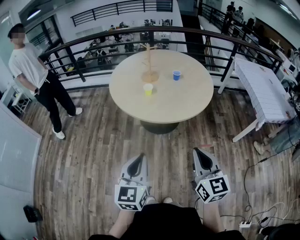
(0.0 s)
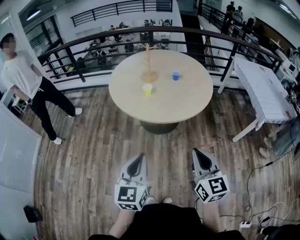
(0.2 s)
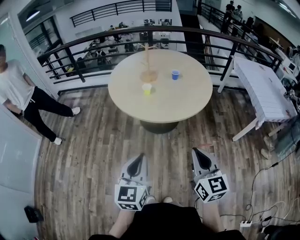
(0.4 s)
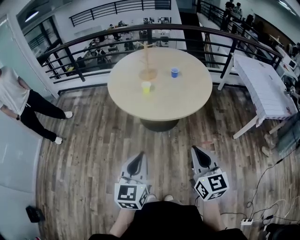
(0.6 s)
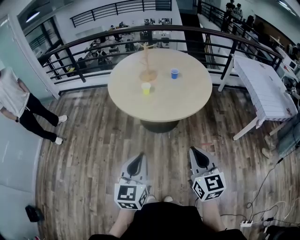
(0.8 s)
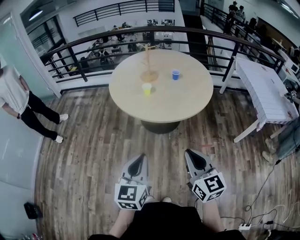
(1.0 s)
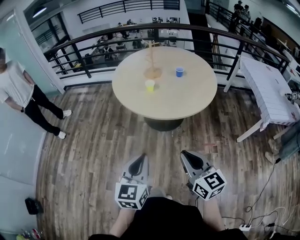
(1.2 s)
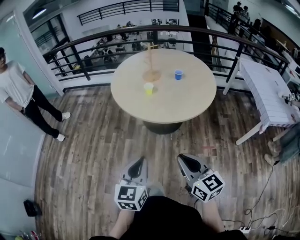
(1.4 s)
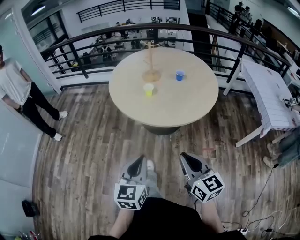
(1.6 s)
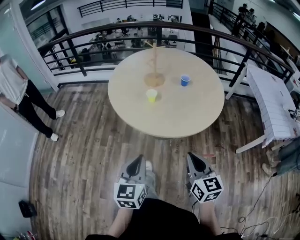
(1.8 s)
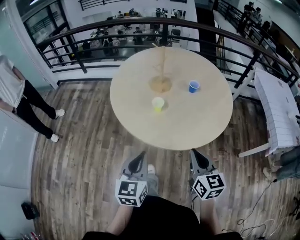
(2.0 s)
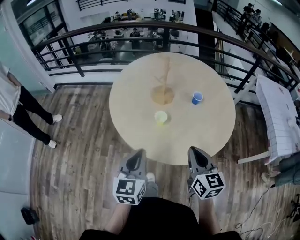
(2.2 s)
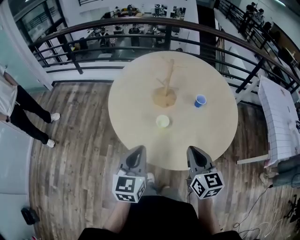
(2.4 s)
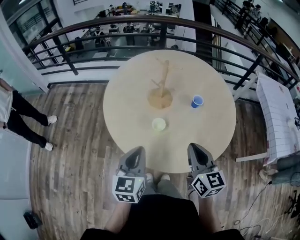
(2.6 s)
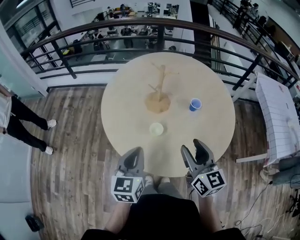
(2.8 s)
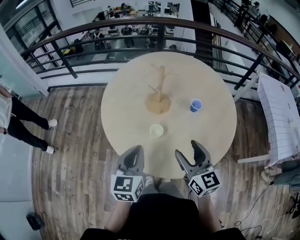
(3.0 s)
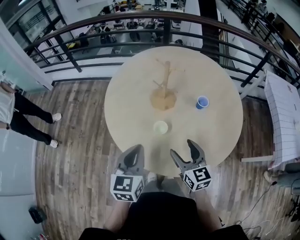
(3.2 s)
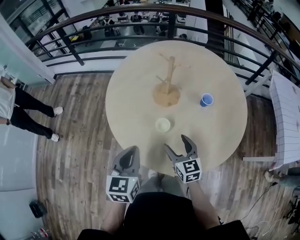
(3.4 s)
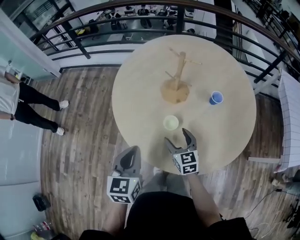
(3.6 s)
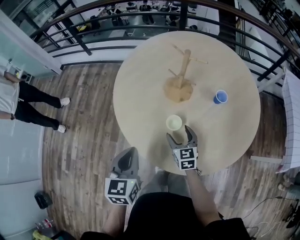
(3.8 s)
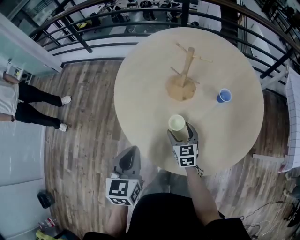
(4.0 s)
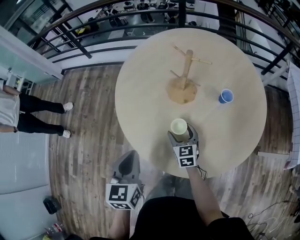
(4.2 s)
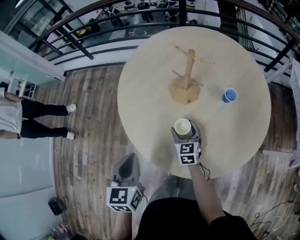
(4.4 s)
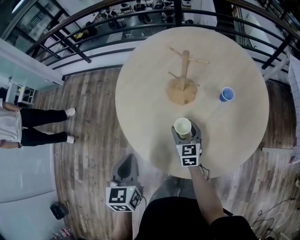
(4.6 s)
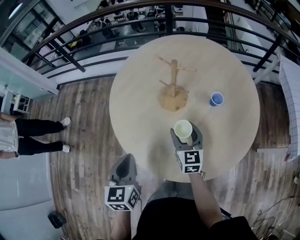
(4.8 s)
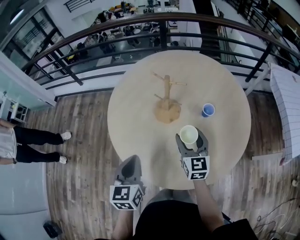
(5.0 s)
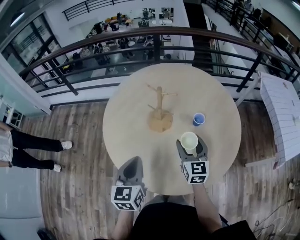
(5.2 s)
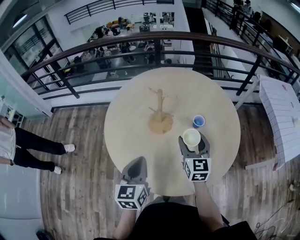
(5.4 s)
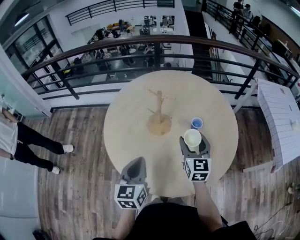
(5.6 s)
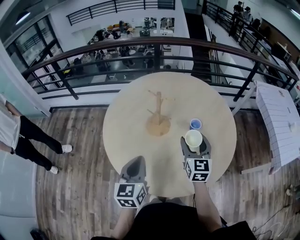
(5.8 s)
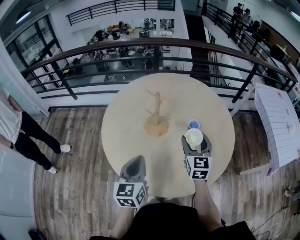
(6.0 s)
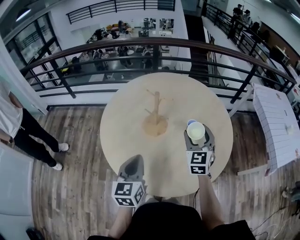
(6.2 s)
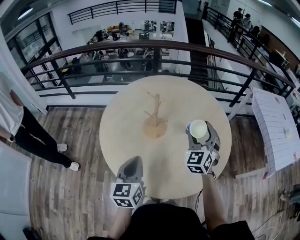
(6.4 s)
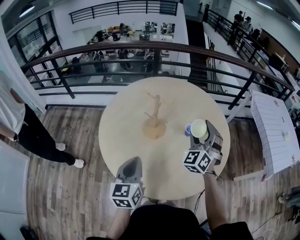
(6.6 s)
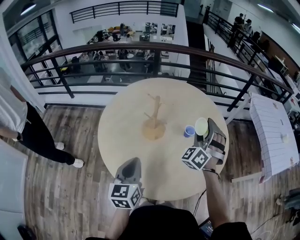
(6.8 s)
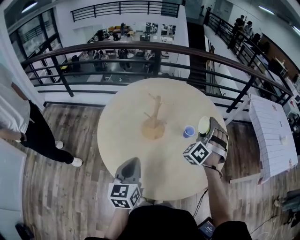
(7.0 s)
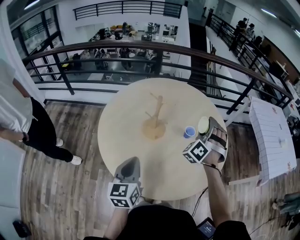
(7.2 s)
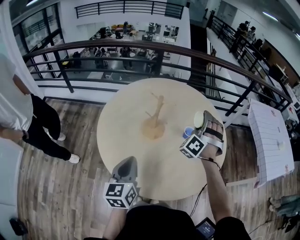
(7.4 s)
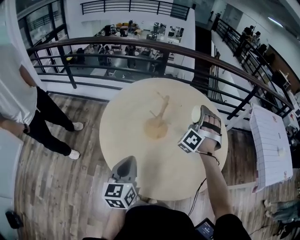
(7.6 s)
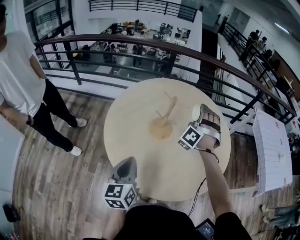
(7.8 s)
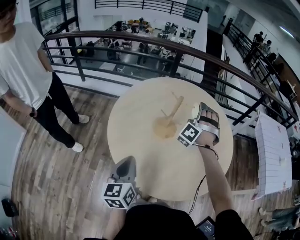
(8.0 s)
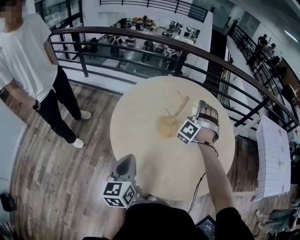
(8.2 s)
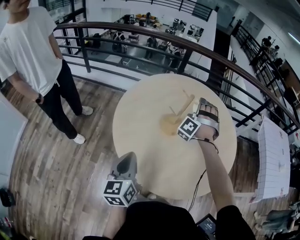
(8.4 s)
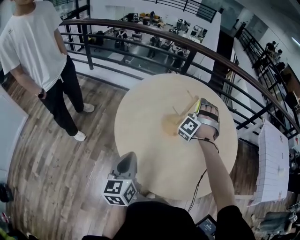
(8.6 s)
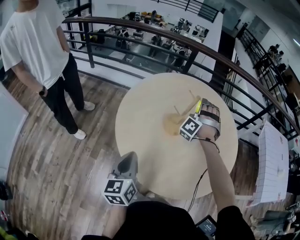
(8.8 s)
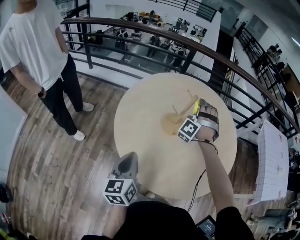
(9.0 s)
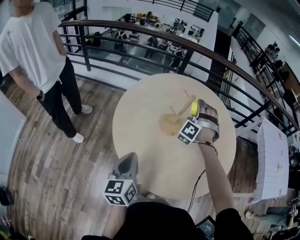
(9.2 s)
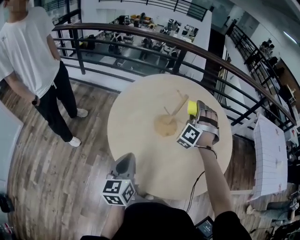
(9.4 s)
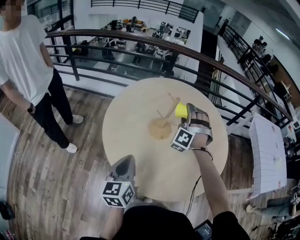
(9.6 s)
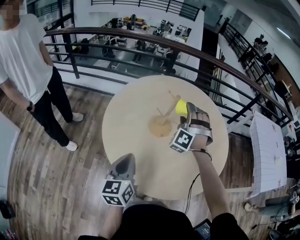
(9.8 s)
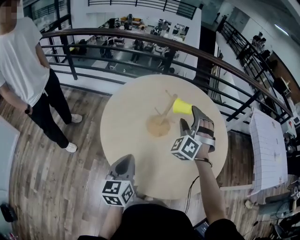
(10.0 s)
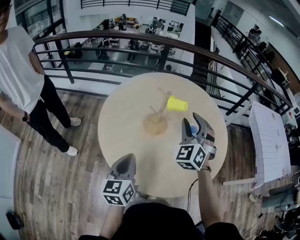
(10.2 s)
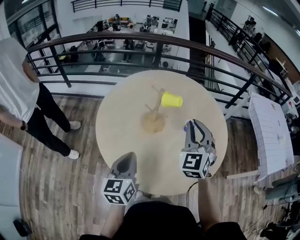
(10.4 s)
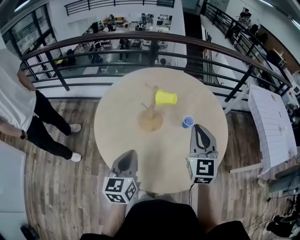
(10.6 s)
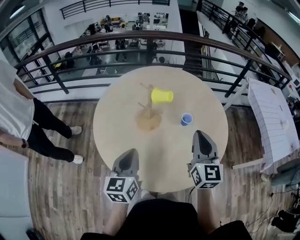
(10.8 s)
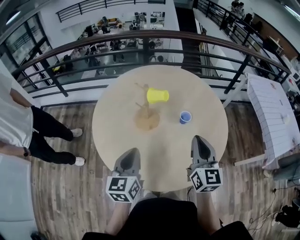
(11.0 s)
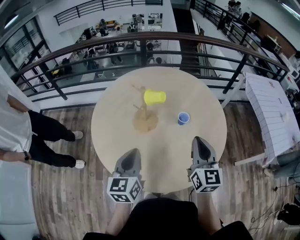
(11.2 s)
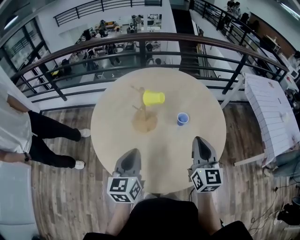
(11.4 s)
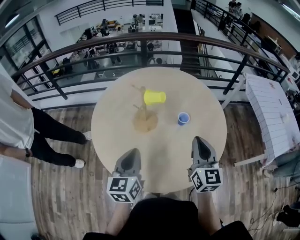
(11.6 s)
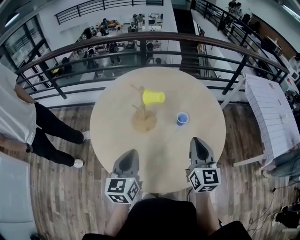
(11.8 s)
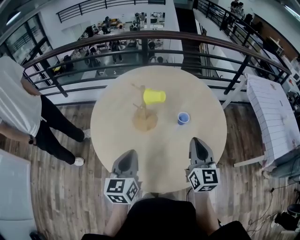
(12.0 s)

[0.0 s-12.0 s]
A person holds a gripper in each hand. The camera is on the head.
0.0 to 1.6 s: The left gripper shifts by approximately 5 cm. The right gripper is displaced downward and forward by approximately 10 cm.
1.6 to 3.0 s: The pair of grippers is taken forward, some 40 cm. The right gripper opens.
3.0 to 4.4 s: The right gripper shifts some 30 cm downward and forward, and changes its angle by roughly 20 degrees, while the left gripper shifts some 10 cm to the left and downward.
4.4 to 6.0 s: The right gripper moves upward and to the right, some 30 cm, and rotates approximately 20 degrees, while the left gripper moves to the right, upward and forward, roughly 15 cm.
6.0 to 7.6 s: The right gripper is displaced forward and upward by about 15 cm, and twists about 80 degrees counterclockwise, seen from behind.
7.6 to 9.0 s: The left gripper heads to the left, covering some 5 cm. The right gripper travels to the left and downward by roughly 15 cm.
9.0 to 10.4 s: The right gripper is displaced backward, to the right and upward by approximately 20 cm, twists about 60 degrees clockwise, seen from behind, and closes its fingers, while the left gripper heads to the right, covering roughly 10 cm.
10.4 to 12.0 s: The right gripper travels to the right, downward and backward by about 15 cm, and rolls clockwise, seen from behind, by roughly 40 degrees, while the left gripper shifts about 5 cm to the right.

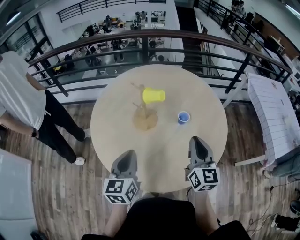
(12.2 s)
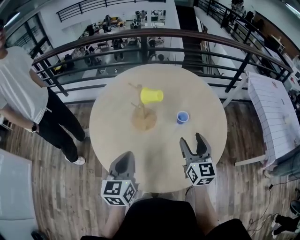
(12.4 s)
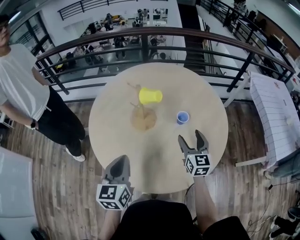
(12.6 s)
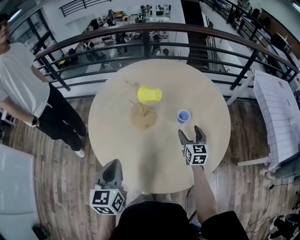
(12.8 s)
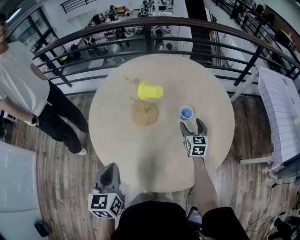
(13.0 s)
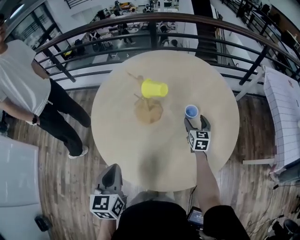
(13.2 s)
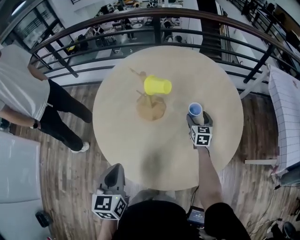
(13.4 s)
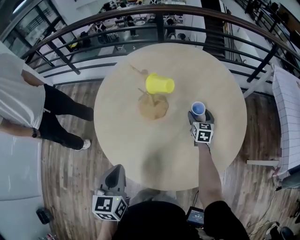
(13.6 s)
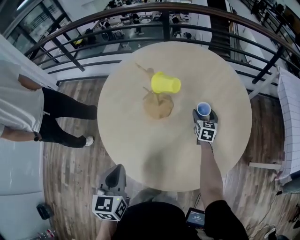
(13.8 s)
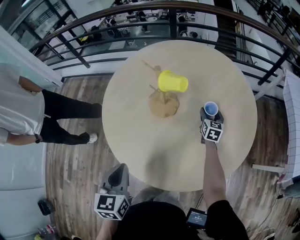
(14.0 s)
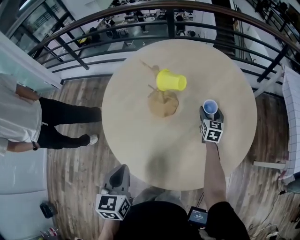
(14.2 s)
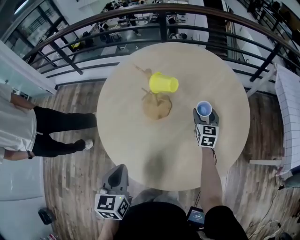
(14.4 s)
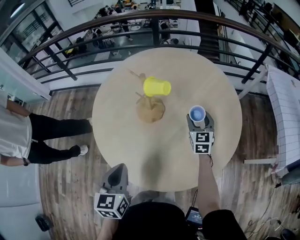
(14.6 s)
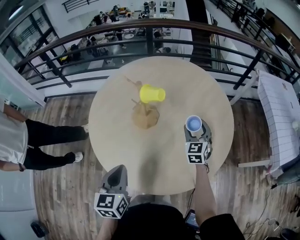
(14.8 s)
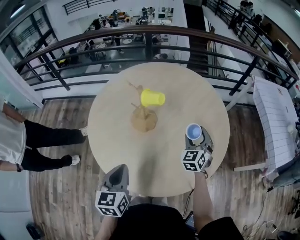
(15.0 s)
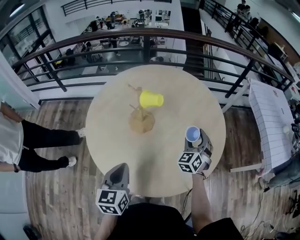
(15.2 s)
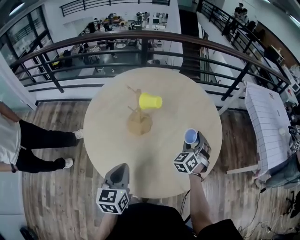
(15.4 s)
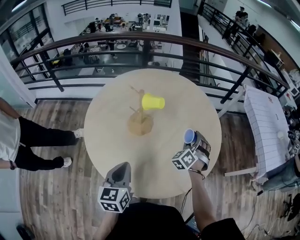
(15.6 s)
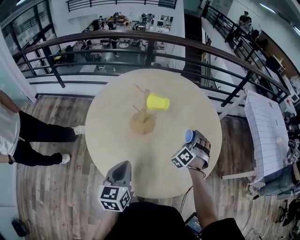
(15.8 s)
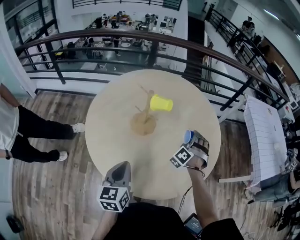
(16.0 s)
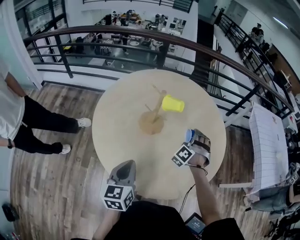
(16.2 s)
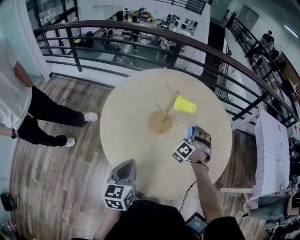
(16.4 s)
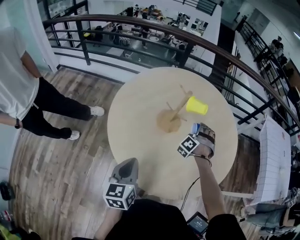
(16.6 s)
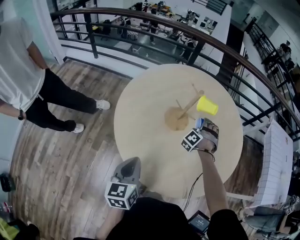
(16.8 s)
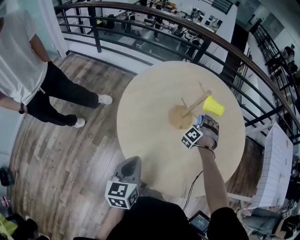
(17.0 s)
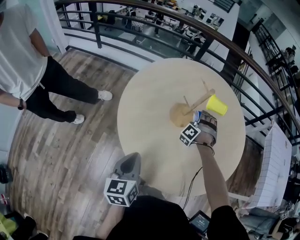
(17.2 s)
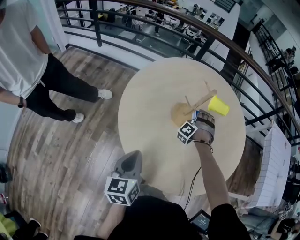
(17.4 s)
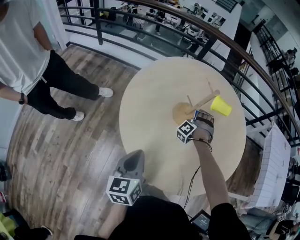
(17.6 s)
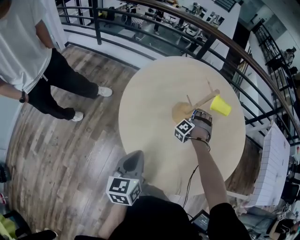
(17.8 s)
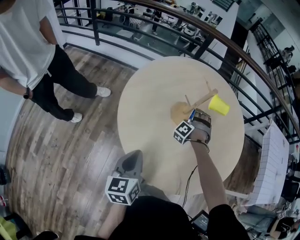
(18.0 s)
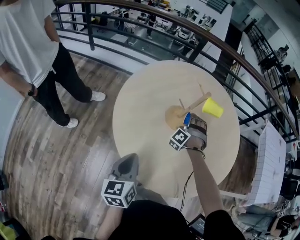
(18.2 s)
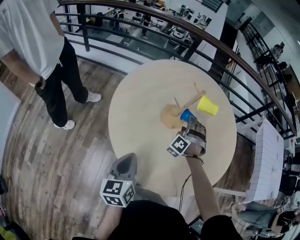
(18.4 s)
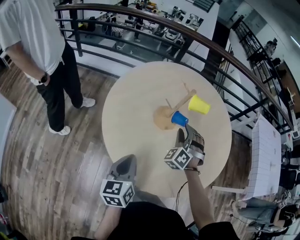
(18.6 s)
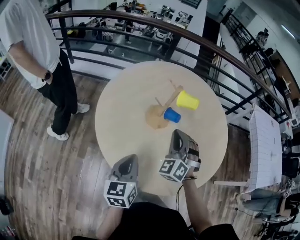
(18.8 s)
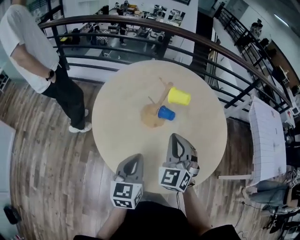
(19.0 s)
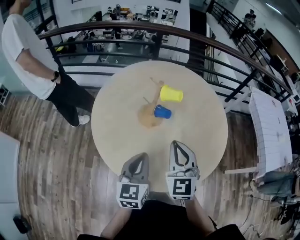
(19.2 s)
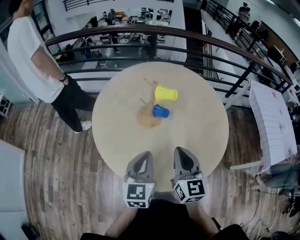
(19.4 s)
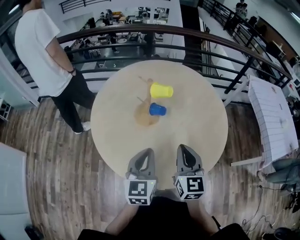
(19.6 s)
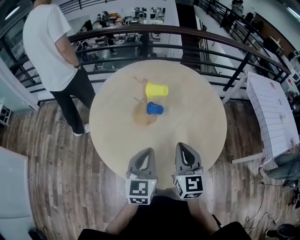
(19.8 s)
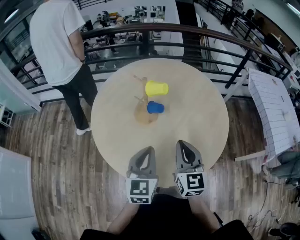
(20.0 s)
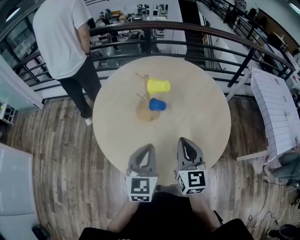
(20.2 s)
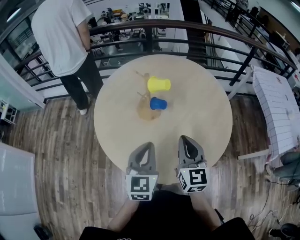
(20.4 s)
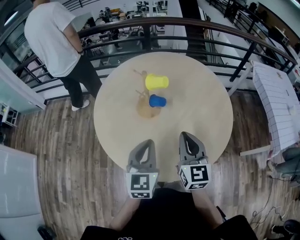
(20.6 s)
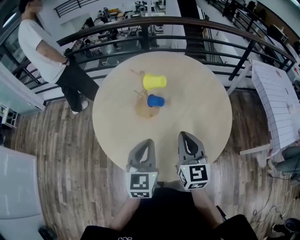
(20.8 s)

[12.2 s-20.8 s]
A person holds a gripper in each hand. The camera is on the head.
12.2 to 13.6 s: The left gripper shifts by about 5 cm. Meanwhile the right gripper travels downward and forward by some 35 cm, swivels about 30 degrees, and opens up.
13.6 to 15.0 s: The right gripper heads upward and backward, covering roughly 15 cm, and changes its angle by approximately 40 degrees.
15.0 to 16.6 s: The left gripper goes roughly 5 cm to the left. The right gripper travels to the left by about 15 cm, and rolls counterclockwise, seen from behind, by about 60 degrees.
16.6 to 18.0 s: The left gripper changes place by roughly 5 cm. Meanwhile the right gripper moves to the left, some 10 cm.
18.0 to 19.4 s: The right gripper shifts approximately 30 cm backward and upward, rolls clockwise, seen from behind, by some 100 degrees, and closes up, while the left gripper travels to the right by some 15 cm, and rotates approximately 30 degrees.
19.4 to 20.8 s: The right gripper goes approximately 5 cm to the right.

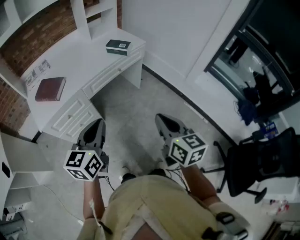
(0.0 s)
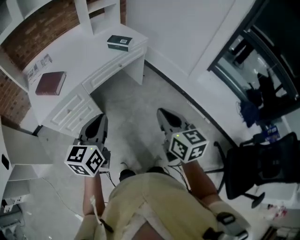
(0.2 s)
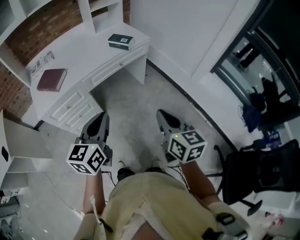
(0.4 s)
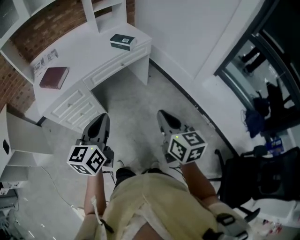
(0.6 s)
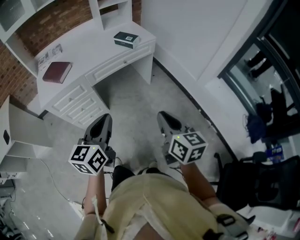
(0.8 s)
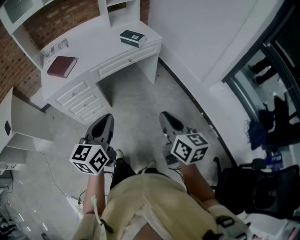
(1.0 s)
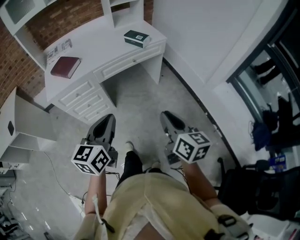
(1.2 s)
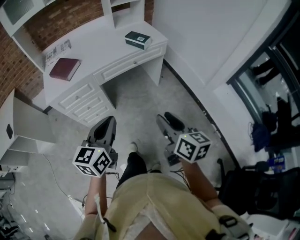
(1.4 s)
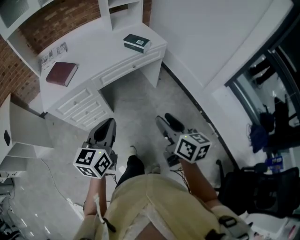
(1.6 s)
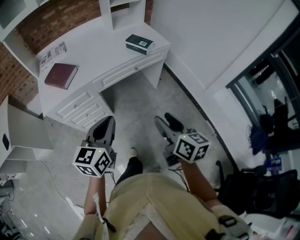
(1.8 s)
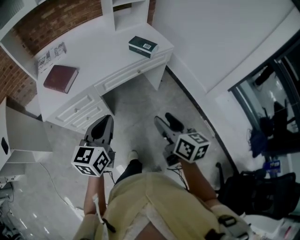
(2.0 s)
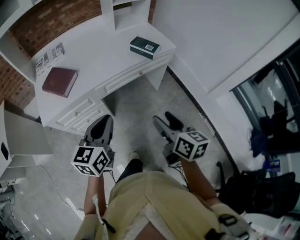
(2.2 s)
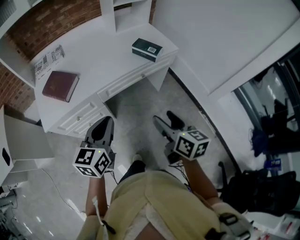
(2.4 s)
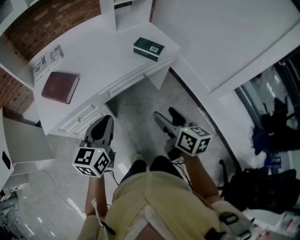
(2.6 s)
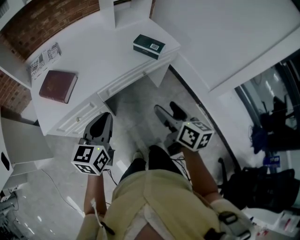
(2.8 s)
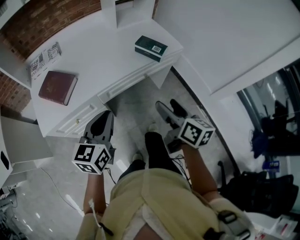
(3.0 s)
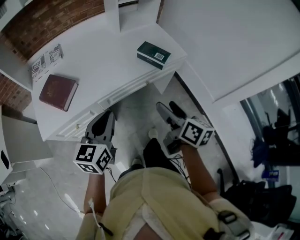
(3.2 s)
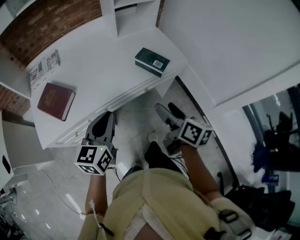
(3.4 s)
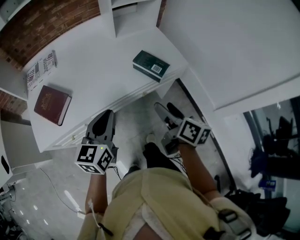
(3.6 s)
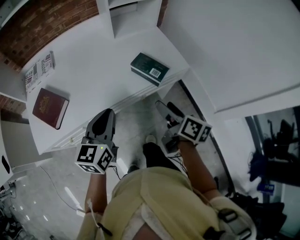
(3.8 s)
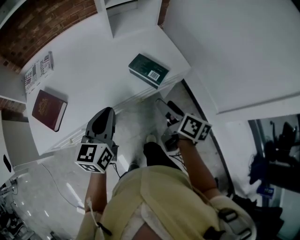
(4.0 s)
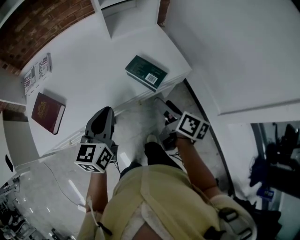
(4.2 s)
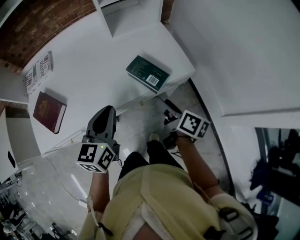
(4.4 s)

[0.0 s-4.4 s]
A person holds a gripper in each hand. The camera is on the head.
0.0 to 1.4 s: Both grippers travel together to the right, roughly 10 cm. The right gripper opens up.
1.4 to 3.0 s: The right gripper is displaced forward by roughly 25 cm, and opens up. Meanwhile the left gripper shifts some 25 cm forward and to the left.
3.0 to 4.4 s: The right gripper goes some 25 cm forward, and turns by some 30 degrees; the left gripper shifts approximately 25 cm forward and to the right.
